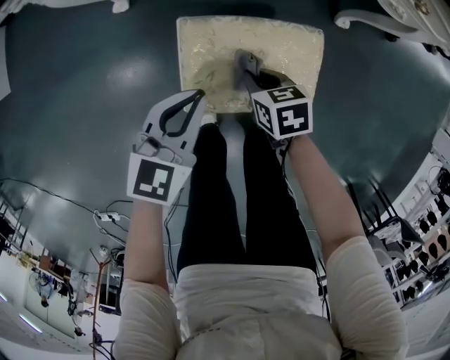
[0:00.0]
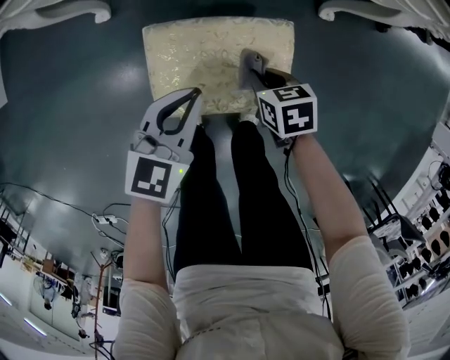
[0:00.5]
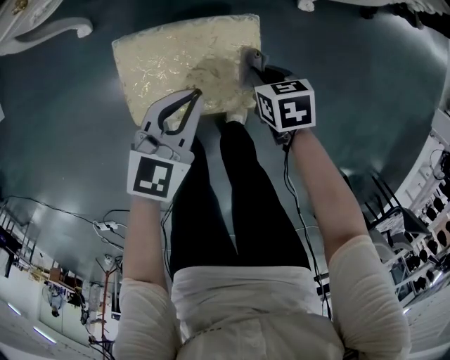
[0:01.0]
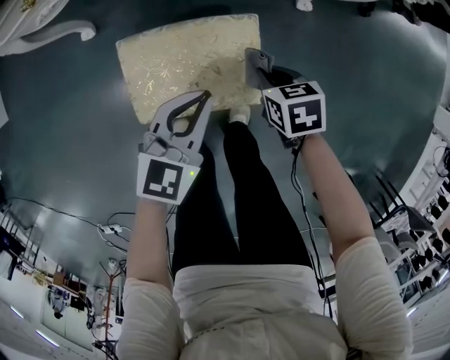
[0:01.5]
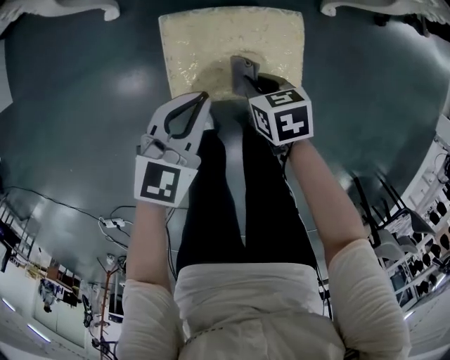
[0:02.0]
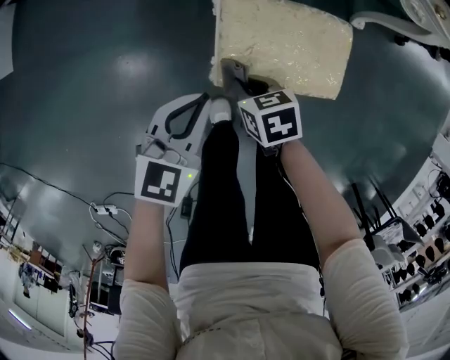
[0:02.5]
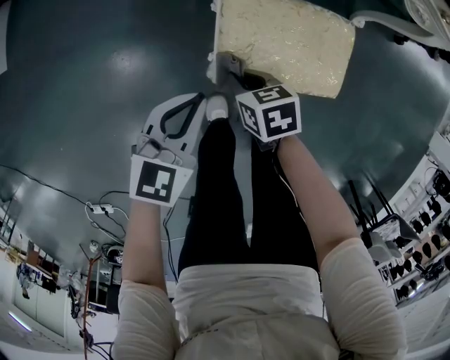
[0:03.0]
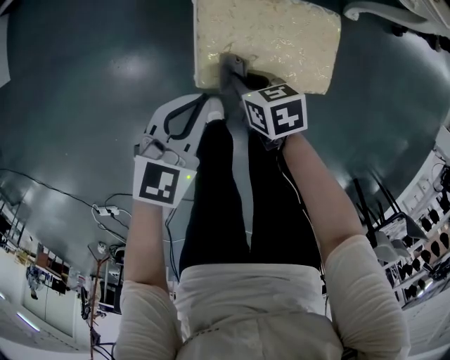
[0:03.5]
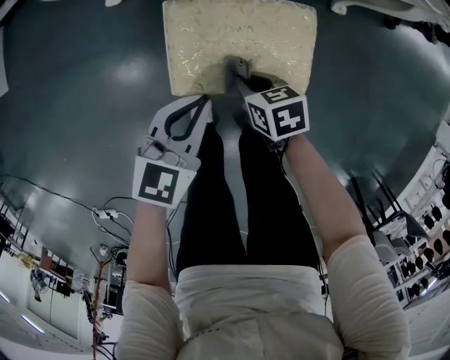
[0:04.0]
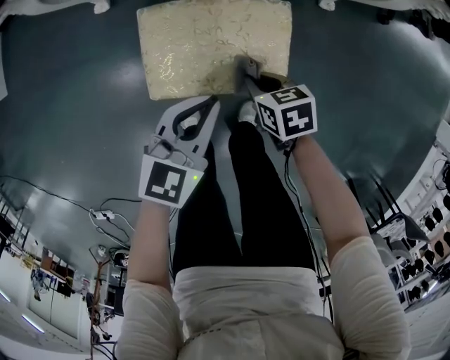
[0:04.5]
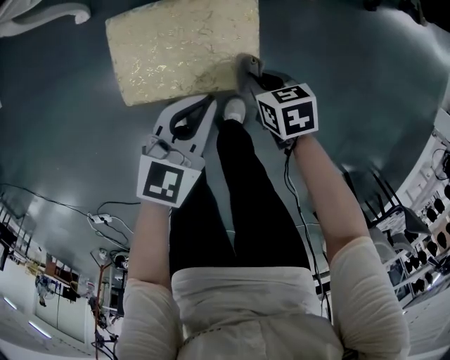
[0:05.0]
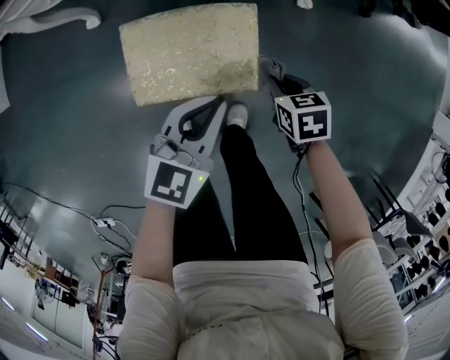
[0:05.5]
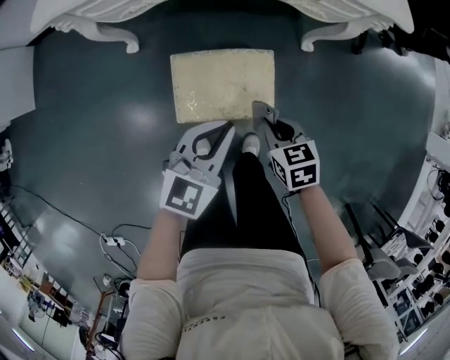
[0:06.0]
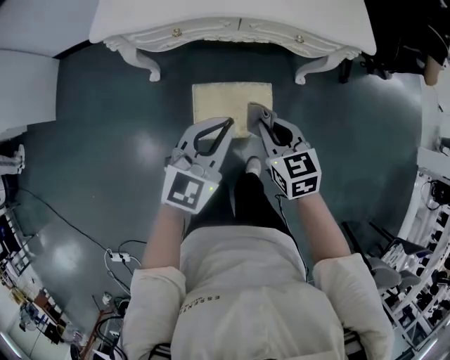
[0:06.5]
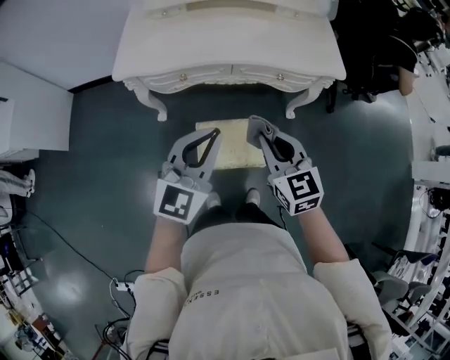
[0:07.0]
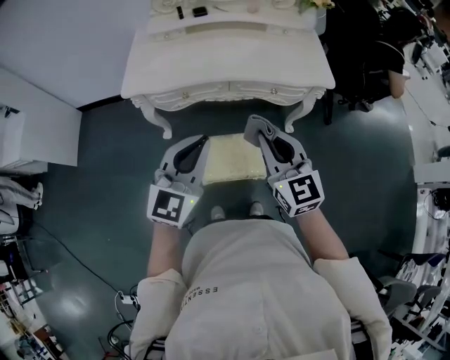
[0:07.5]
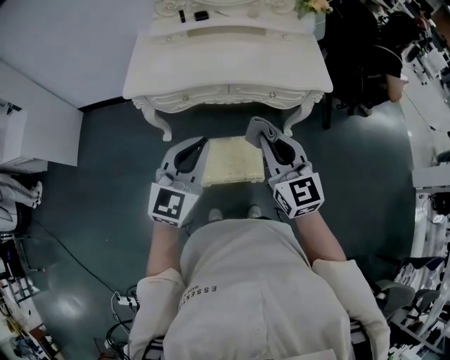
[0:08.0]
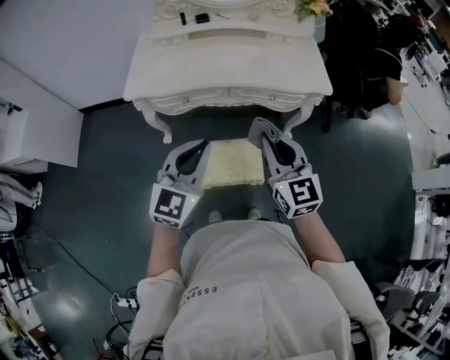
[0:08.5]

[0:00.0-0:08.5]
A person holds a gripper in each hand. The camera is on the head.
0:00.0 to 0:02.0: The left gripper reaches about 15 cm to the right, then returns; the right gripper travels to the right and back again, approximately 20 cm each way.
0:02.0 to 0:04.0: The left gripper reaches approximately 15 cm to the left, then returns, while the right gripper travels to the left and back again, about 15 cm each way.
0:04.0 to 0:06.5: The two grippers go approximately 40 cm upward. The right gripper turns by some 40 degrees. The left gripper changes its angle by some 30 degrees.
0:06.5 to 0:08.5: Both grippers move upward, about 20 cm. The right gripper swivels approximately 30 degrees.

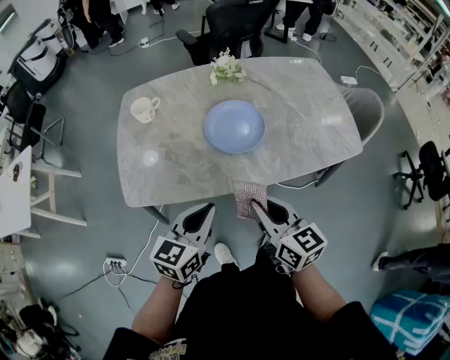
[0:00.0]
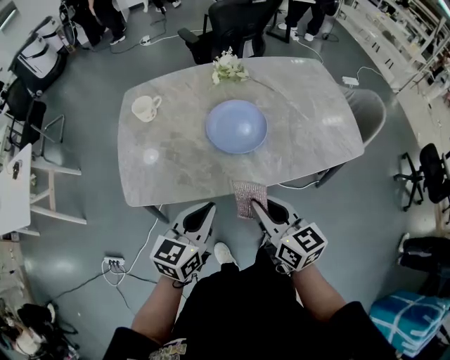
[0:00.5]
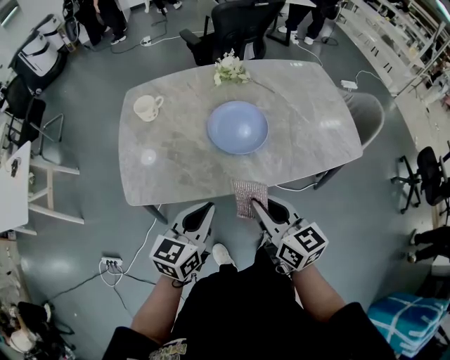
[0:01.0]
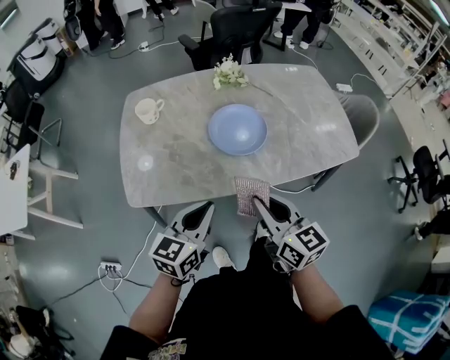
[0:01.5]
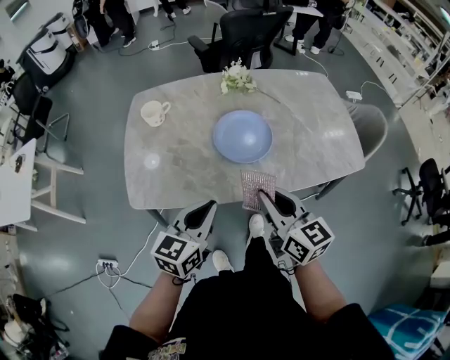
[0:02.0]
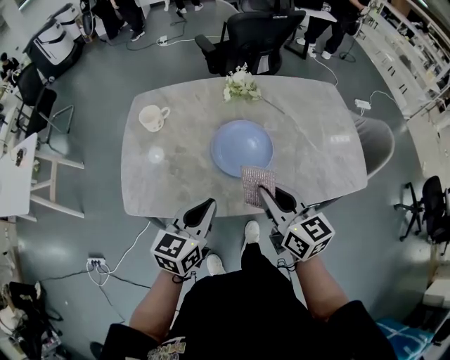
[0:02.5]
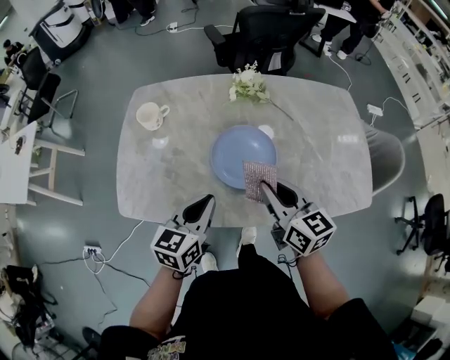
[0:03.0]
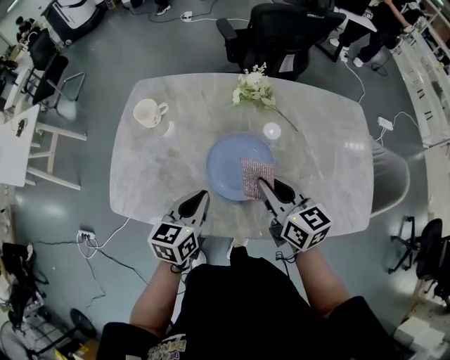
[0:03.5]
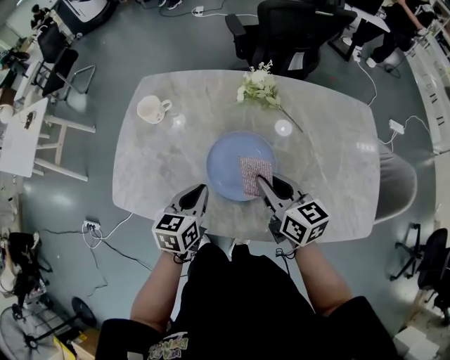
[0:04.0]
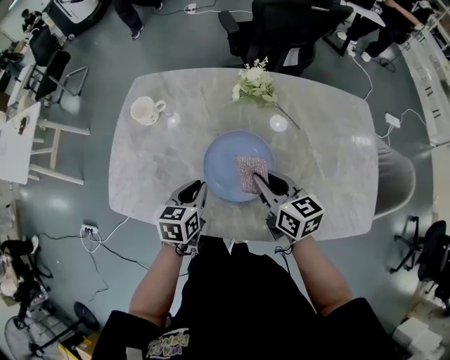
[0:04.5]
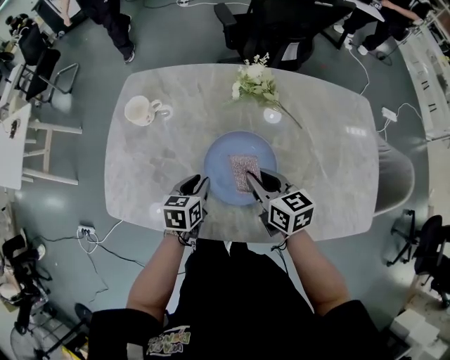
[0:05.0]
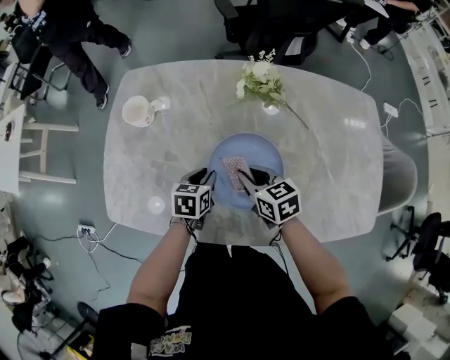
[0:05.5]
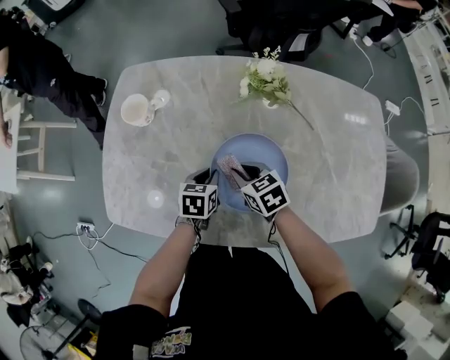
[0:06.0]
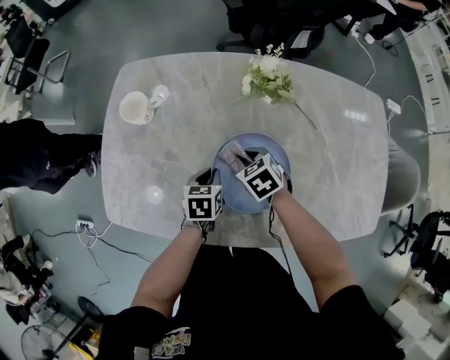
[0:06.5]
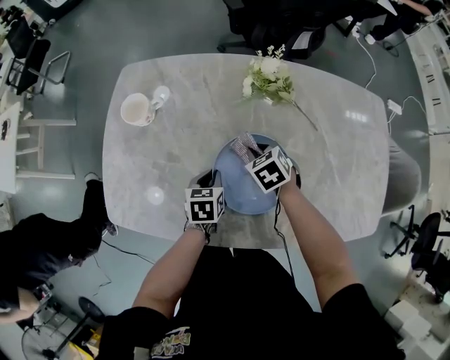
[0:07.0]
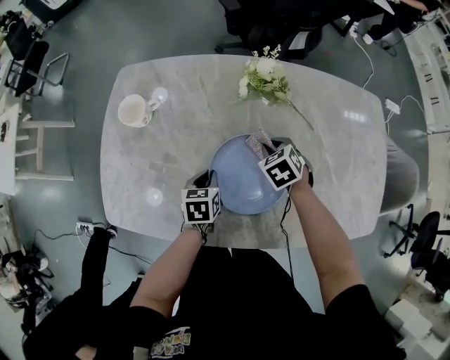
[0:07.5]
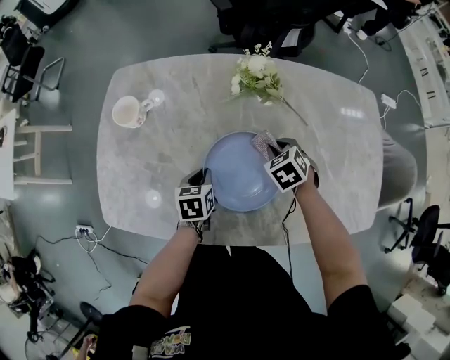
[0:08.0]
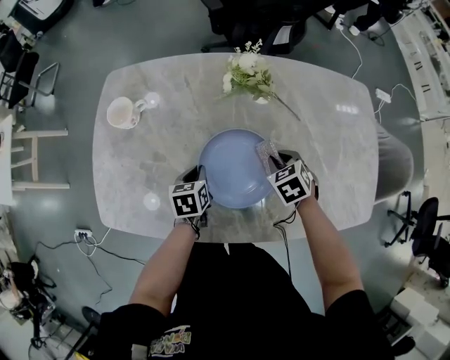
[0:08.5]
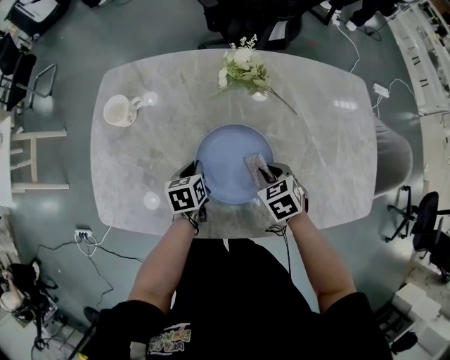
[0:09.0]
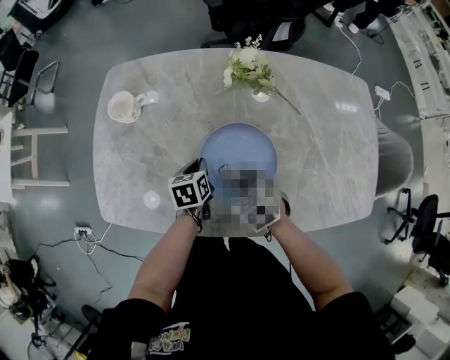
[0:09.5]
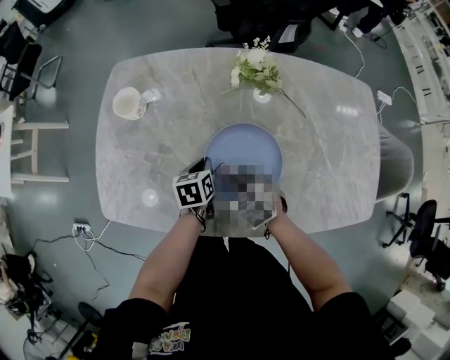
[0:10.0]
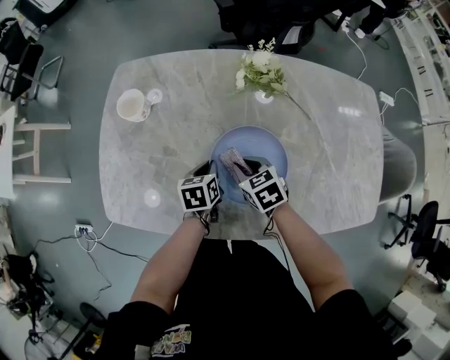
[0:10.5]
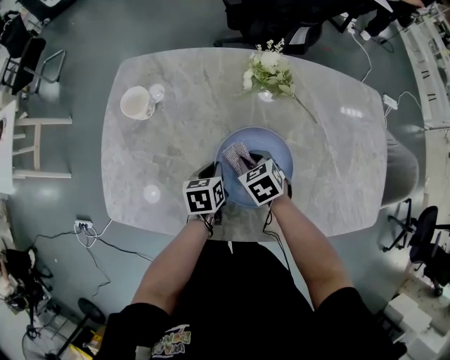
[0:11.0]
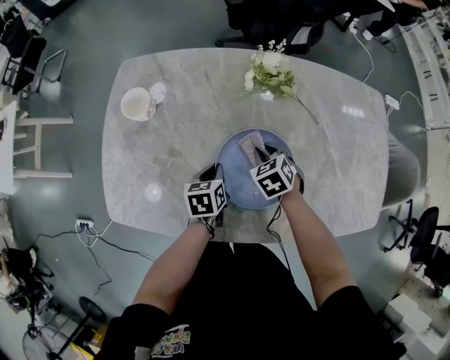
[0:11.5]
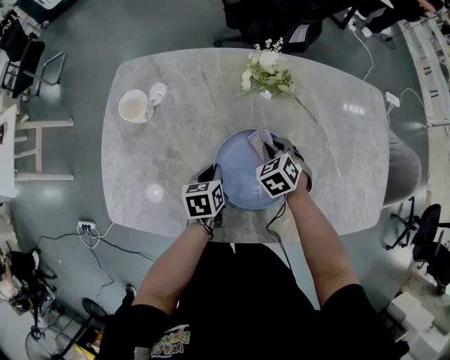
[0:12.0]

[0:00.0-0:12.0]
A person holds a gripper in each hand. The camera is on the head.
0:00.0 to 0:02.0: The right gripper changes place by approximately 5 cm.
0:02.0 to 0:04.0: The left gripper moves forward and downward, roughly 25 cm, and swivels some 30 degrees. The right gripper moves forward and to the right, some 25 cm, and rotates approximately 20 degrees.
0:04.0 to 0:06.0: The left gripper heads downward and forward, covering about 20 cm, and swivels roughly 20 degrees. The right gripper shifts roughly 20 cm downward, to the left and forward, and changes its angle by approximately 30 degrees.
0:06.0 to 0:08.0: The right gripper goes roughly 15 cm to the right and forward, and changes its angle by about 30 degrees.
0:08.0 to 0:10.0: The right gripper shifts approximately 15 cm to the left and backward.
0:10.0 to 0:12.0: The right gripper travels forward and to the right by approximately 15 cm.

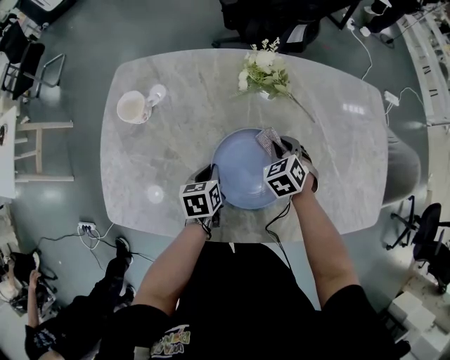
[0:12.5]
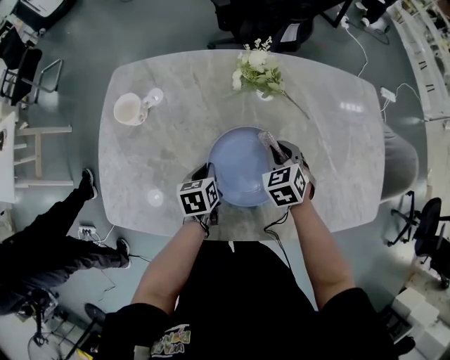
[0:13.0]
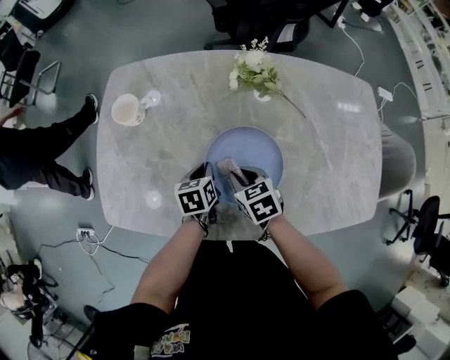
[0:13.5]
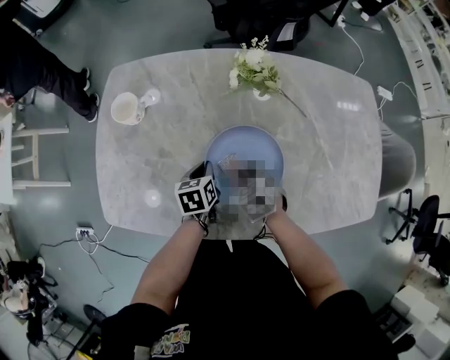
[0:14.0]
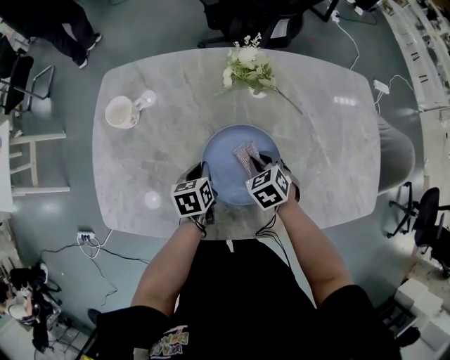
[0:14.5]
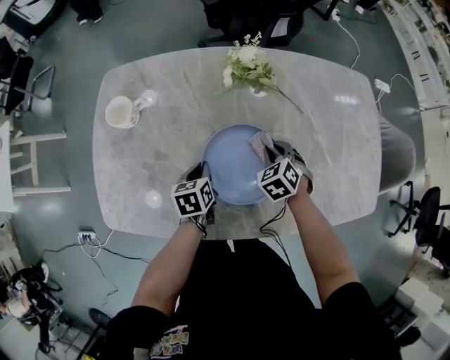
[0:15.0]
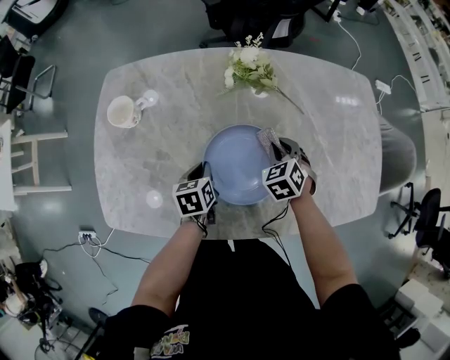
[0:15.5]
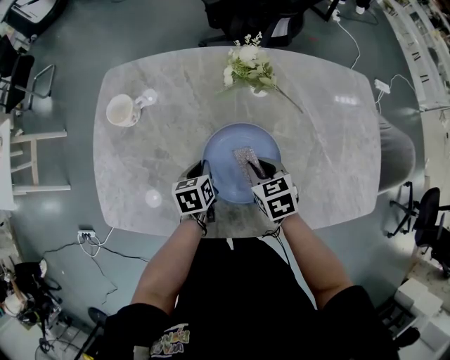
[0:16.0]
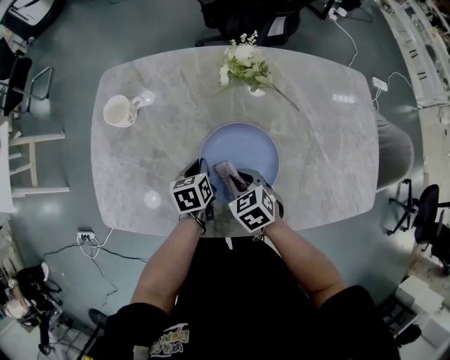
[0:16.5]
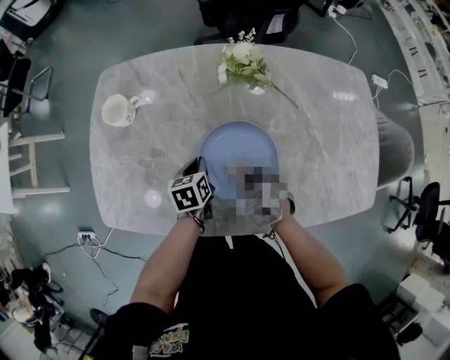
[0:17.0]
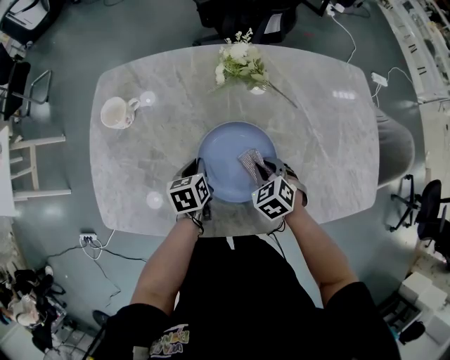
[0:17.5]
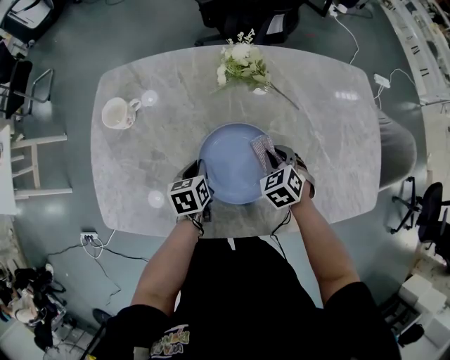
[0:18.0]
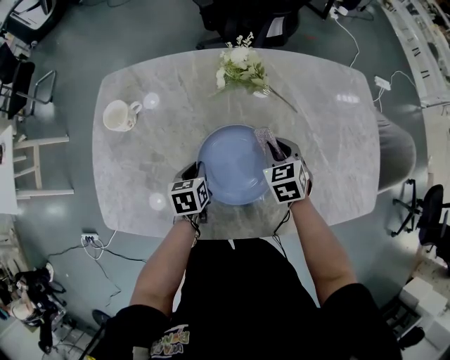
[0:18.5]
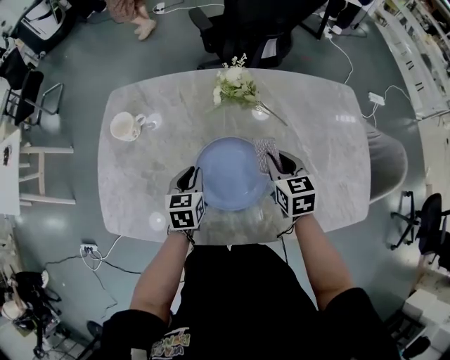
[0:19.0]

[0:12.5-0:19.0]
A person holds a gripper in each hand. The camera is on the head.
0:12.5 to 0:14.5: The right gripper shifts roughly 5 cm backward.
0:14.5 to 0:17.0: The right gripper swings left and right, about 10 cm each way, with 2 reversals.
0:17.0 to 0:19.0: The left gripper moves upward, about 10 cm, and swivels roughly 20 degrees. Meanwhile the right gripper heads upward, to the right and forward, covering about 15 cm, and rotates roughly 30 degrees.
